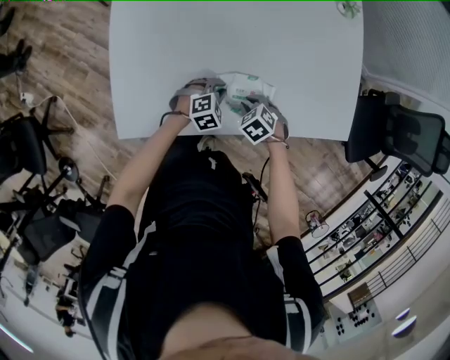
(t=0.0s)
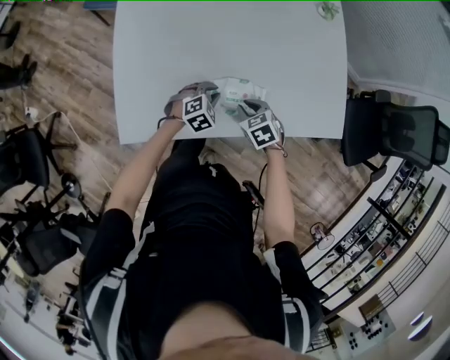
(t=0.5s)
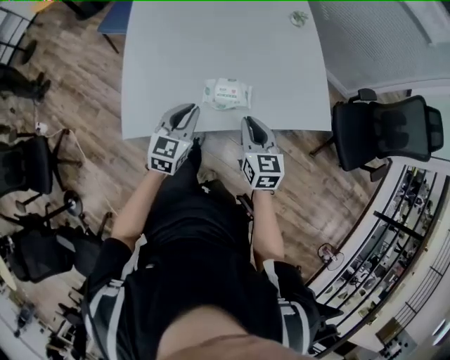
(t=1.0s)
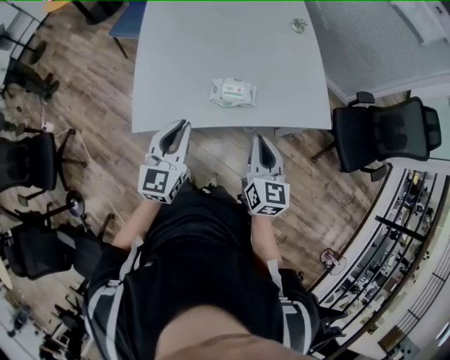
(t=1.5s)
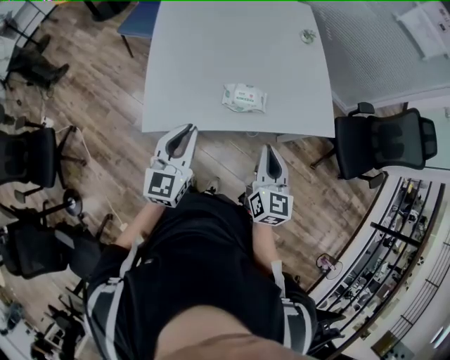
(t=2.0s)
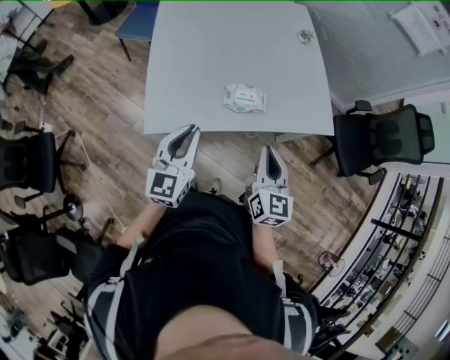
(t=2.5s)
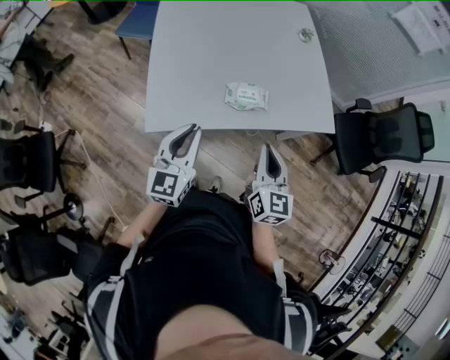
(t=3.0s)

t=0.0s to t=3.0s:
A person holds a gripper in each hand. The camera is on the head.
t=0.0s to t=1.5s: The two grippers go some 35 cm upward. The right gripper tips its fingers upward by approximately 60 degrees, while the left gripper tilts its fingers approximately 50 degrees upward.
t=1.5s to t=3.0s: Both grippers move to the left, roughly 5 cm.

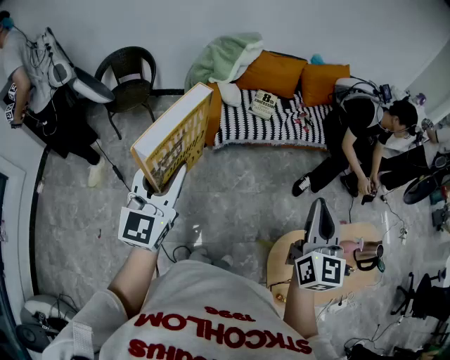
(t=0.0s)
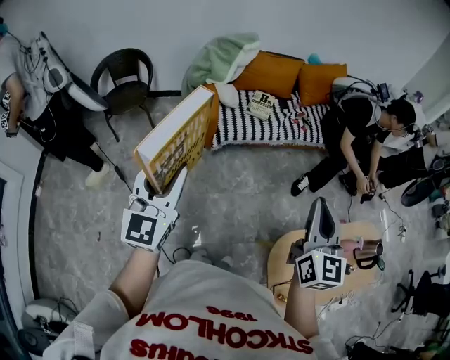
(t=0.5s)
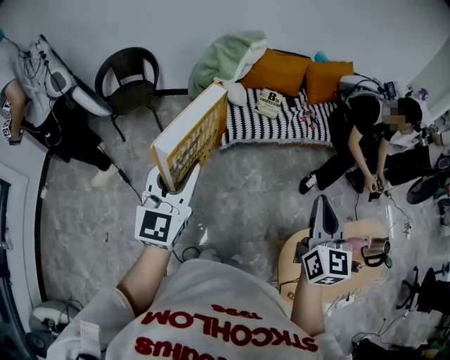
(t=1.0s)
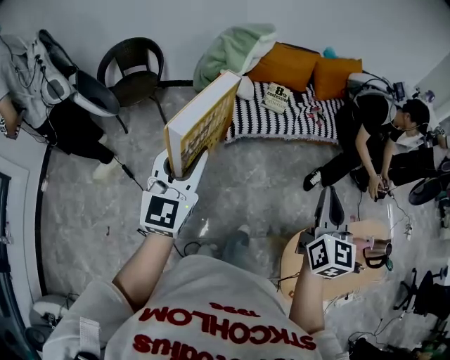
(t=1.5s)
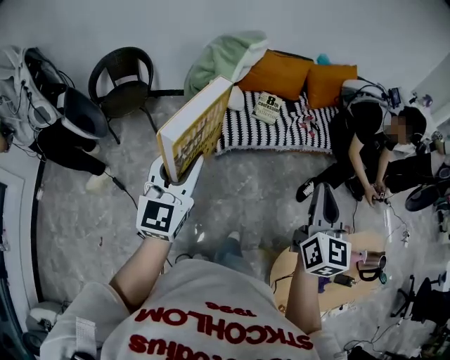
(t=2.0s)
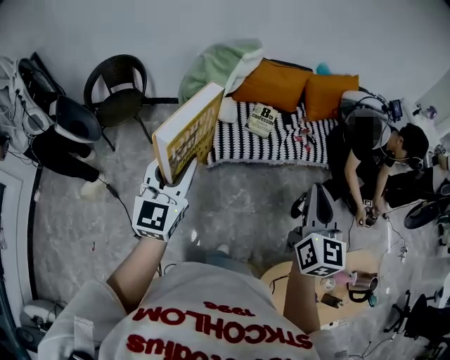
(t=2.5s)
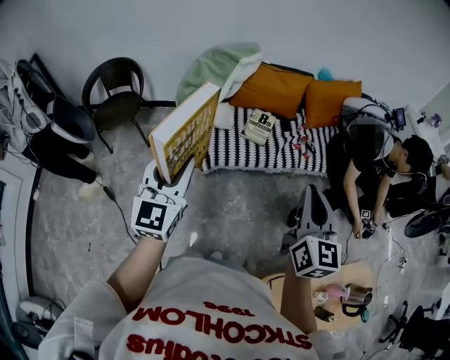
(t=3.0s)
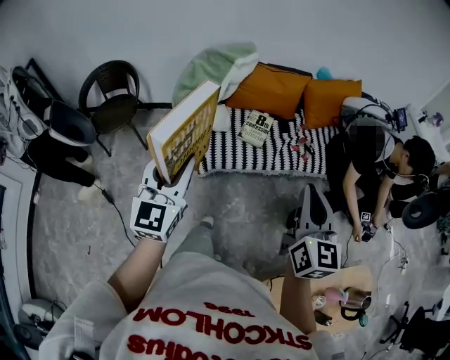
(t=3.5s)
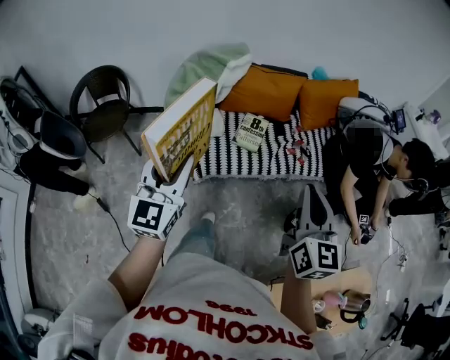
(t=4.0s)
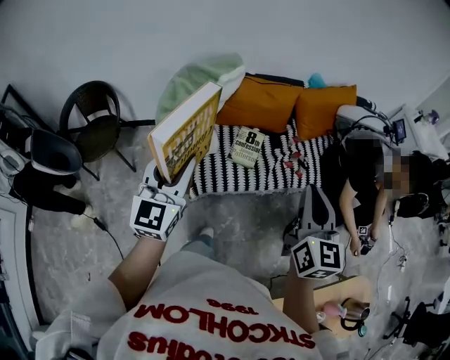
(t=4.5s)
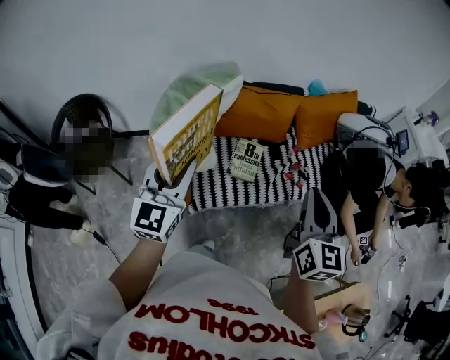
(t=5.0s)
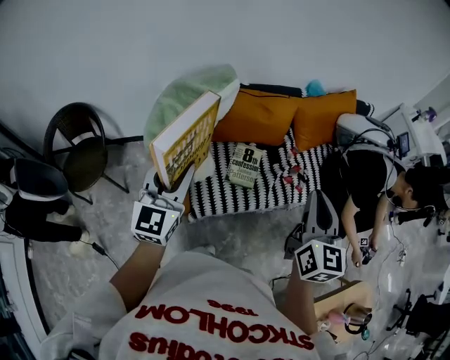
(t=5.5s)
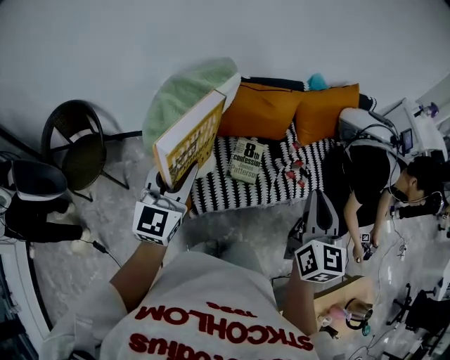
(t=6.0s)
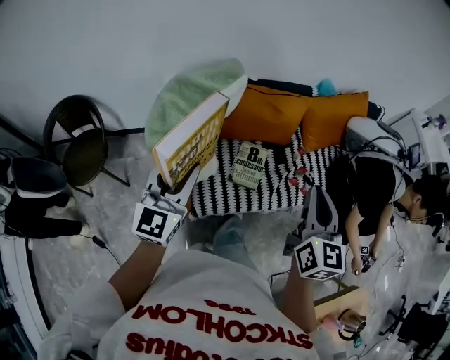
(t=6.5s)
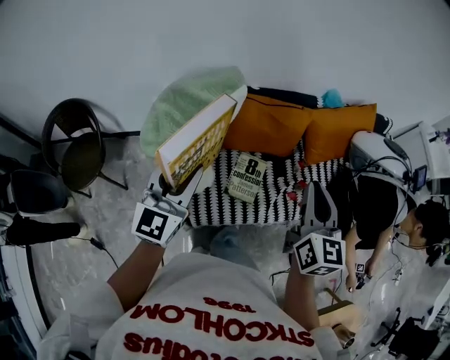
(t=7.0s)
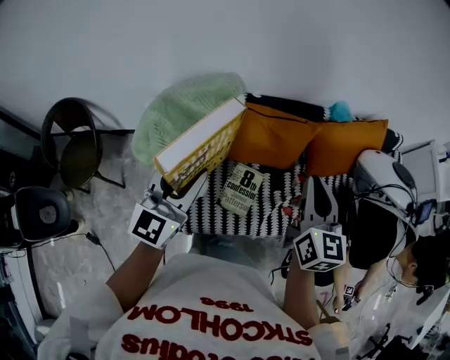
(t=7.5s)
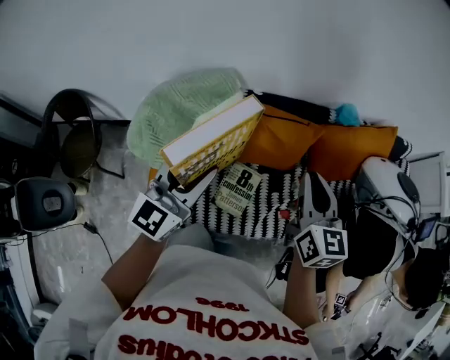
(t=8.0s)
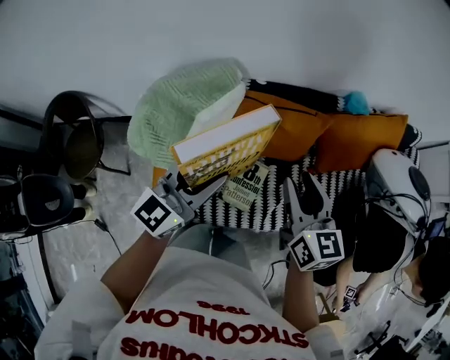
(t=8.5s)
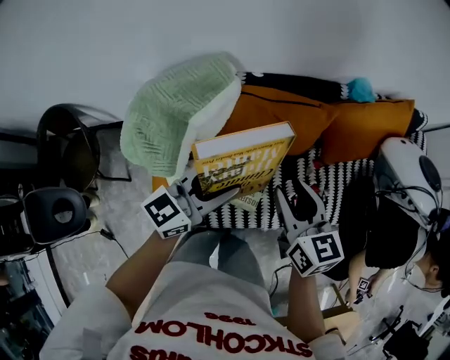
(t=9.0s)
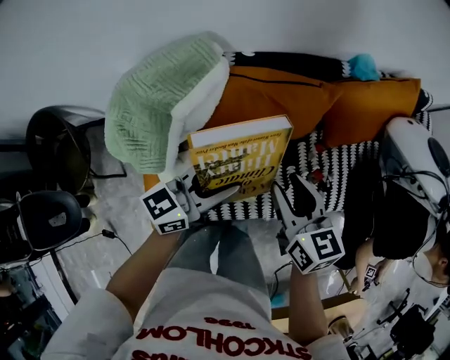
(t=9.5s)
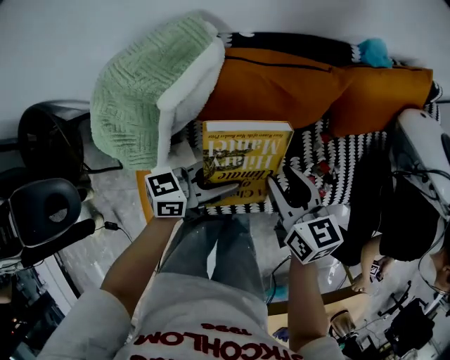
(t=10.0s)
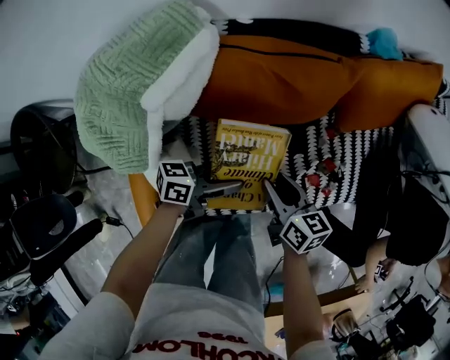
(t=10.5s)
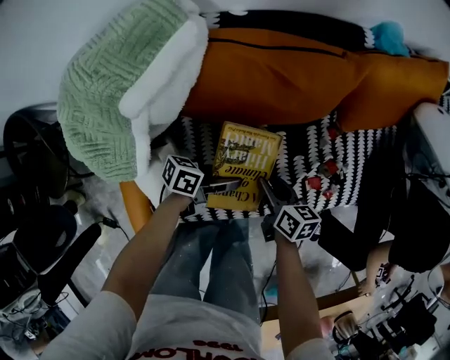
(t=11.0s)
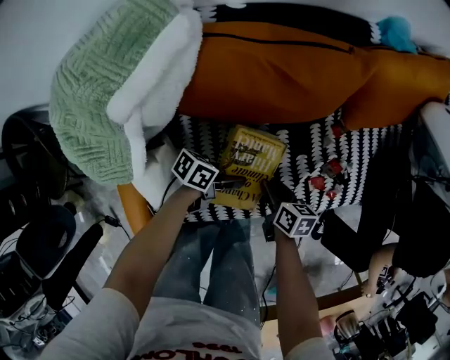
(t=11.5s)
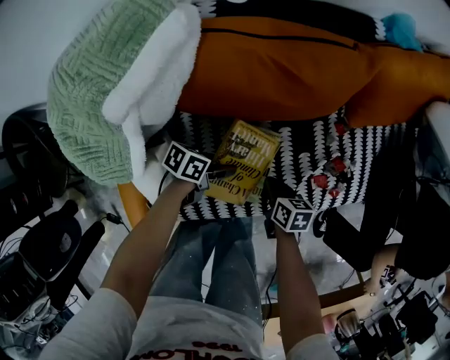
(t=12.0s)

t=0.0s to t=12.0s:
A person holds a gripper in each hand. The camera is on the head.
t=0.0s to t=2.0s: Both grippers move forward, roughly 15 cm.
t=2.0s to t=4.0s: The right gripper is displaced forward by approximately 25 cm; the left gripper goes some 25 cm forward and to the right.
t=4.0s to t=6.0s: Both grippers move forward, about 30 cm.
t=6.0s to t=8.0s: The left gripper goes roughly 30 cm forward and to the right. Meanwhile the right gripper goes approximately 35 cm forward, and turns by roughly 20 degrees.
t=8.0s to t=10.0s: The grippers both shift downward by some 25 cm. The left gripper rotates approximately 60 degrees. Meanwhile the right gripper swivels some 20 degrees, and opens up.
t=10.0s to t=12.0s: The two grippers go about 30 cm downward. The right gripper swivels about 30 degrees, and closes. Meanwhile the left gripper rotates approximately 40 degrees.

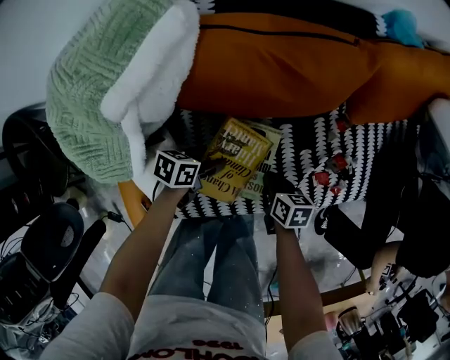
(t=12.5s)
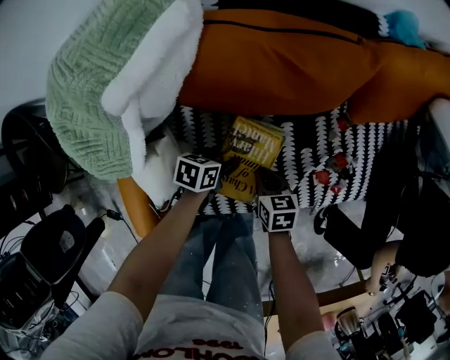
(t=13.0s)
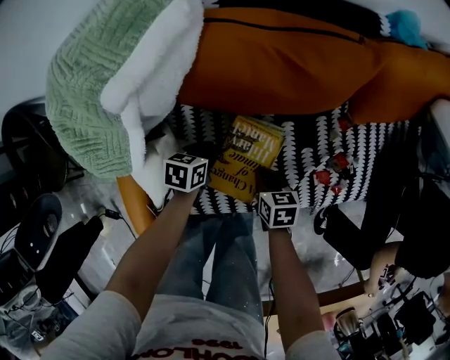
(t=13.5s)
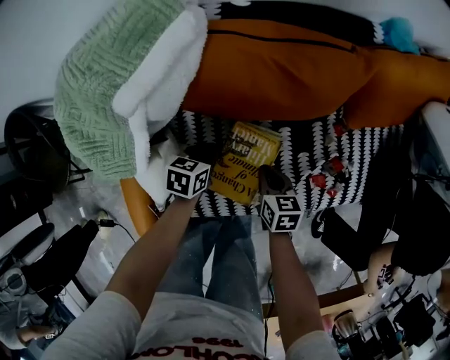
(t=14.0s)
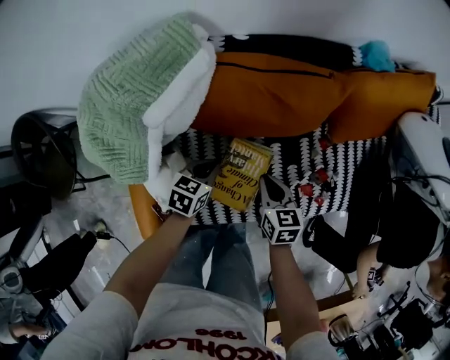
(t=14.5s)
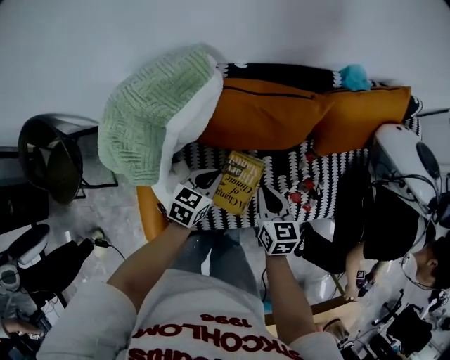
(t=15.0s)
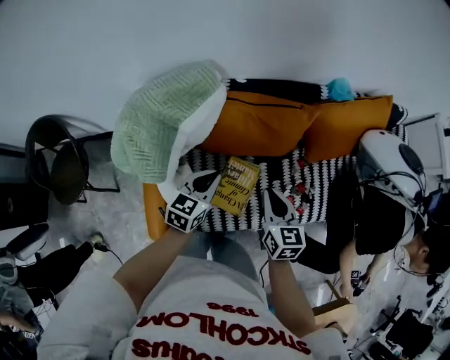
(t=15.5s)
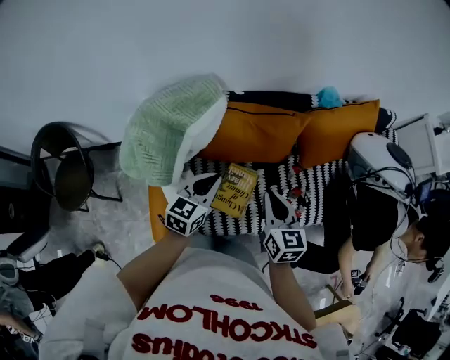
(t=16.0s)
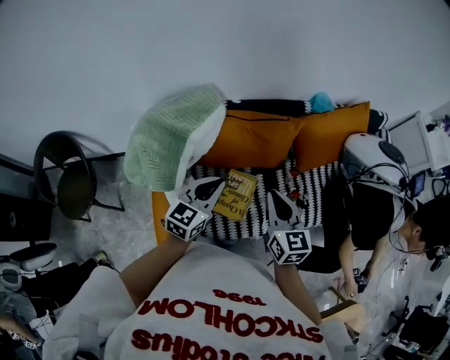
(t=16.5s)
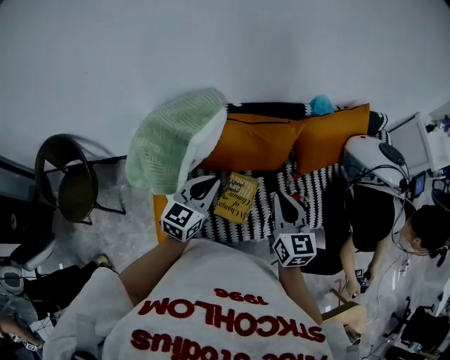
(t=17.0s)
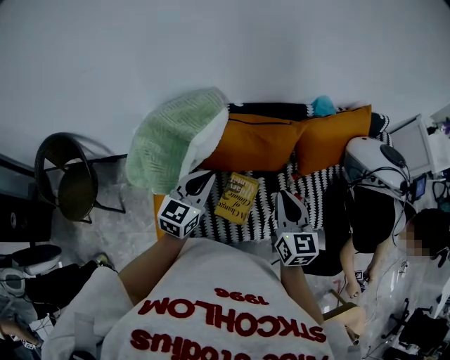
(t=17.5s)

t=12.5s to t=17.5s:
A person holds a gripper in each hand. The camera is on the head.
t=12.5s to t=15.0s: The grippers both shift upward by approximately 25 cm. The right gripper changes its angle by about 30 degrees, while the left gripper swivels approximately 40 degrees, and closes.
t=15.0s to t=17.5s: Both grippers travel together upward, about 25 cm. The left gripper changes its angle by some 30 degrees. Meanwhile the right gripper changes its angle by approximately 20 degrees.

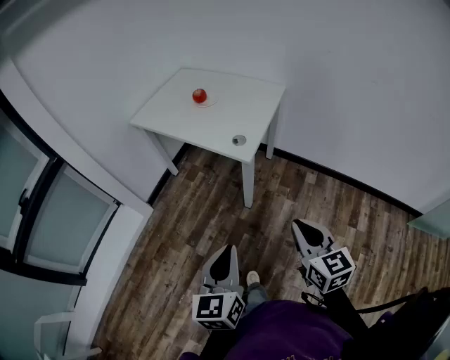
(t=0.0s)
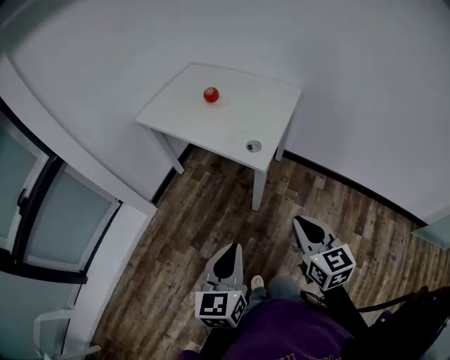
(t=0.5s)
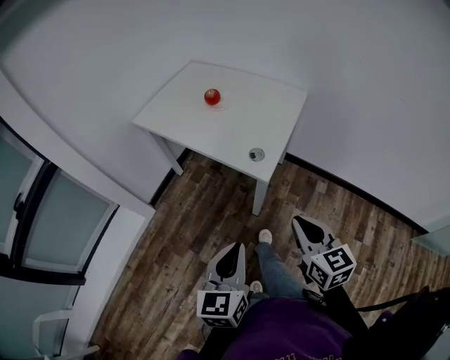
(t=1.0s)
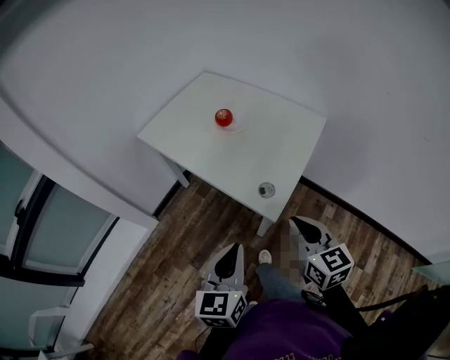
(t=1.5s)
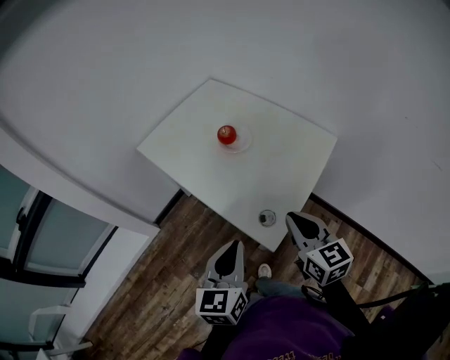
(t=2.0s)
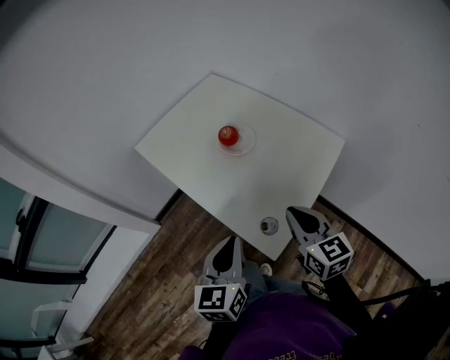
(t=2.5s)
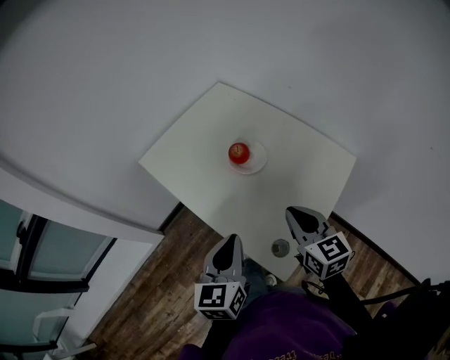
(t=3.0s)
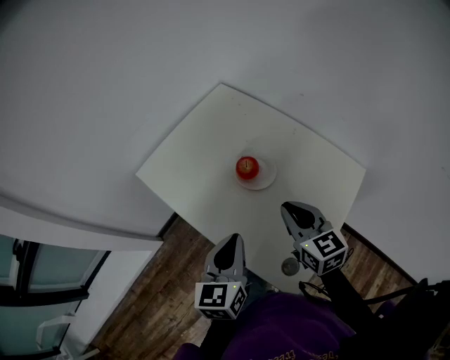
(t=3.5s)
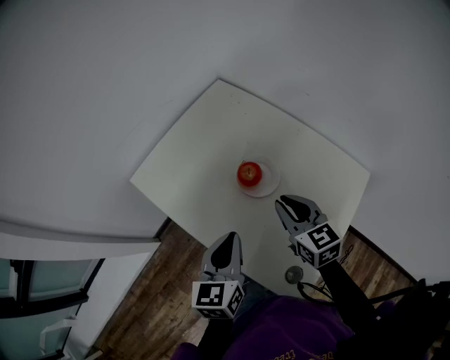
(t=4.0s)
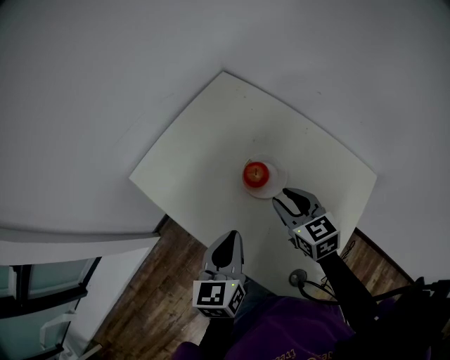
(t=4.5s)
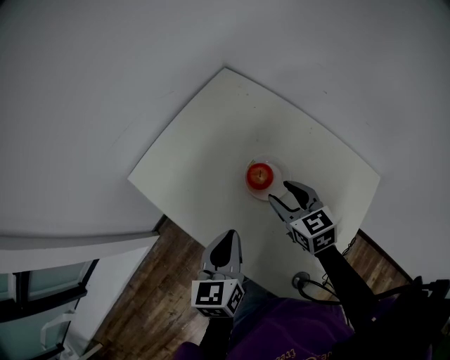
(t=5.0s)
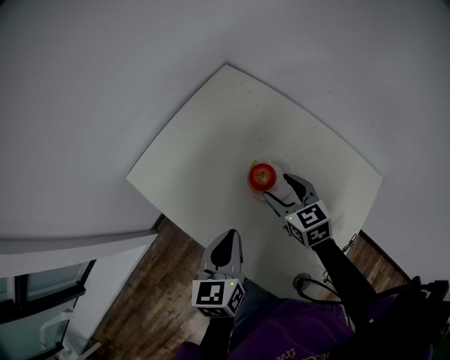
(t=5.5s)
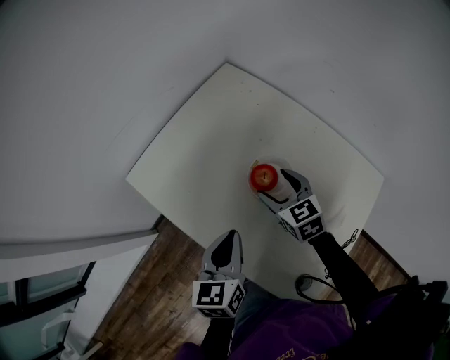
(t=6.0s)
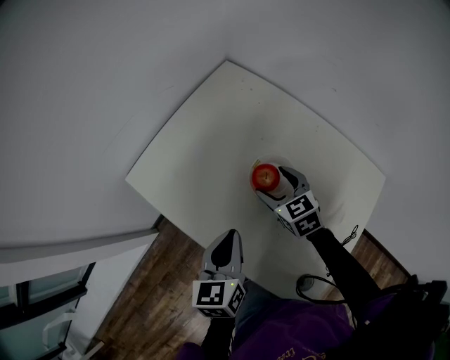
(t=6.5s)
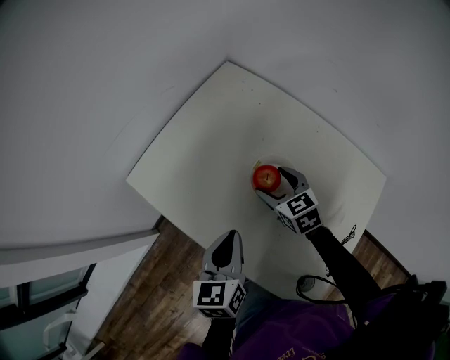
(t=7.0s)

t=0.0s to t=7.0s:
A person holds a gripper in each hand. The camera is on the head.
t=0.0s to t=2.0s: Both grippers travel together forward, some 40 cm.
t=2.0s to t=3.5s: The two grippers go about 20 cm forward.
t=3.5s to t=5.0s: The right gripper heads forward and downward, covering approximately 15 cm, and opens; the left gripper is displaced forward by roughly 10 cm.
t=5.0s to t=7.0s: The right gripper goes some 10 cm downward and forward, and opens its fingers.
